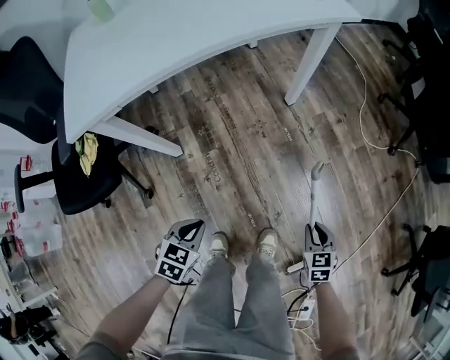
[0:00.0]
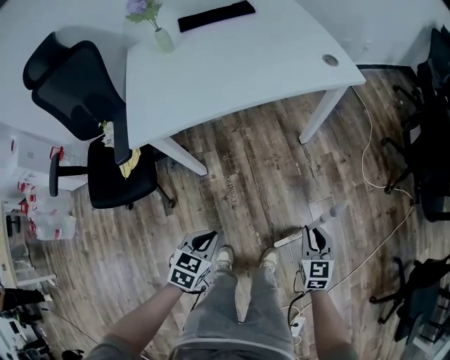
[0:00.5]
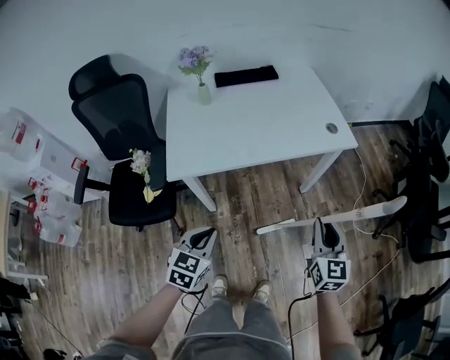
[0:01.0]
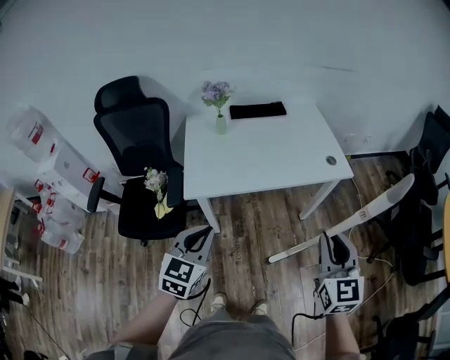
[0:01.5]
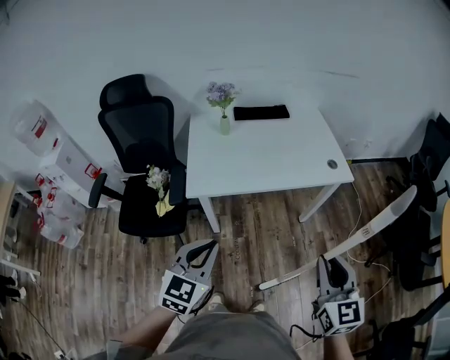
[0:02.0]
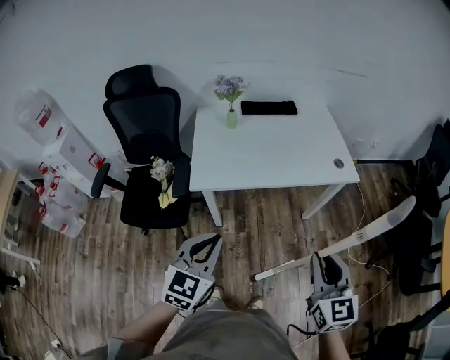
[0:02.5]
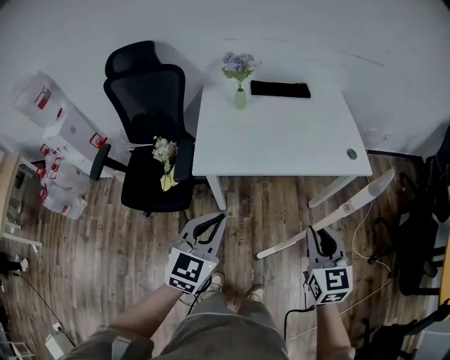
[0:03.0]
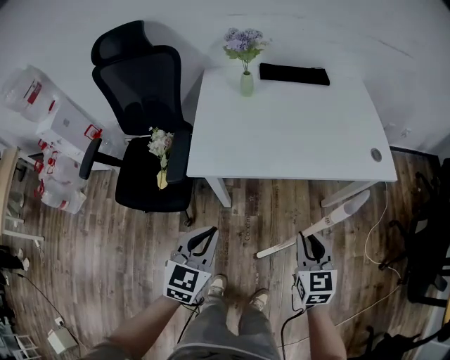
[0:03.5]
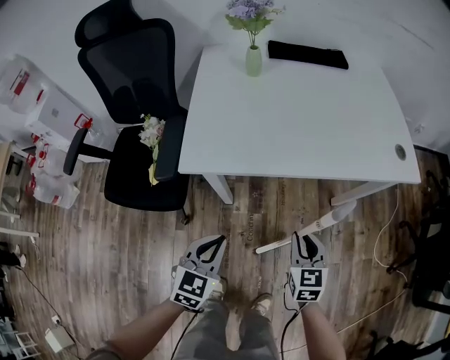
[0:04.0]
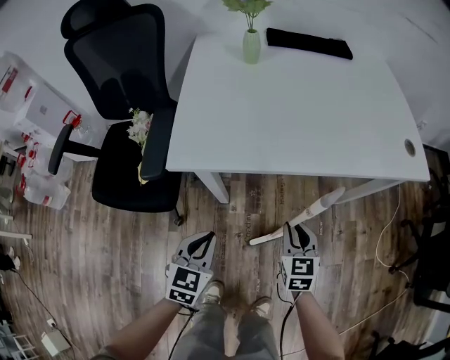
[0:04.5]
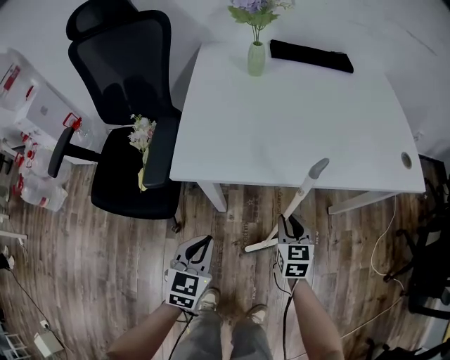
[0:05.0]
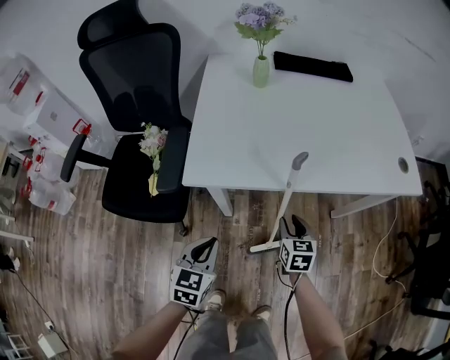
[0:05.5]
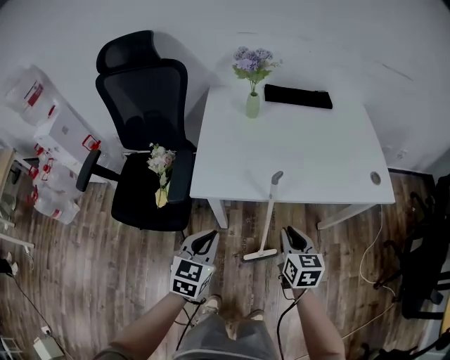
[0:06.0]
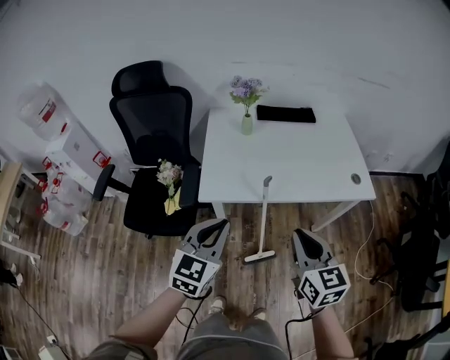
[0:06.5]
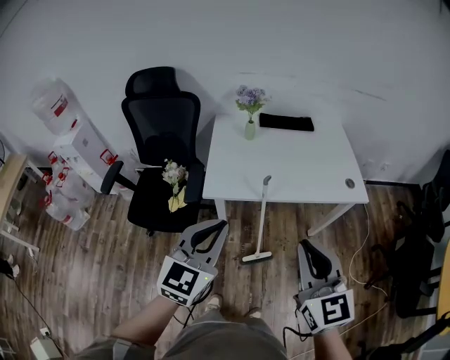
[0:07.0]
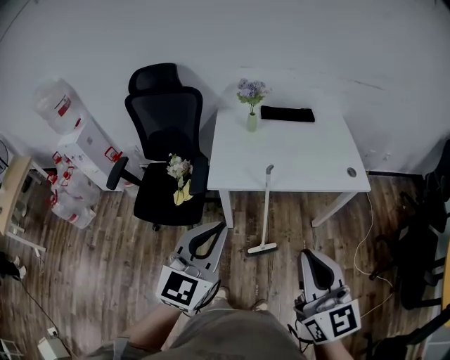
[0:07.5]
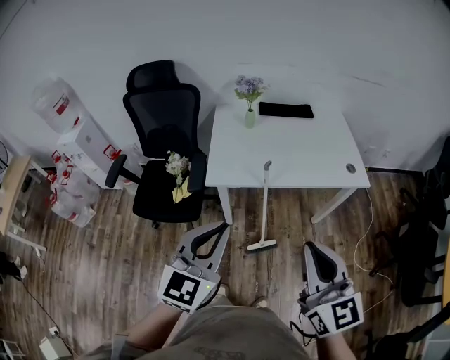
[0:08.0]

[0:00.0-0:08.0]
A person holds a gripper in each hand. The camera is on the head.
0:00.0 to 0:02.0: Both grippers move upward, approximately 60 cm. The left gripper points its fingers approximately 30 degrees further upward. Meanwhile the right gripper tips its fingers upward by roughly 40 degrees.
0:02.0 to 0:04.0: The left gripper travels downward by about 30 cm; the right gripper goes approximately 40 cm downward and forward.
0:04.0 to 0:06.0: The two grippers go approximately 10 cm upward.
0:06.0 to 0:08.0: The two grippers go approximately 40 cm upward and backward. The right gripper swivels roughly 30 degrees. Meanwhile the left gripper turns by some 20 degrees.

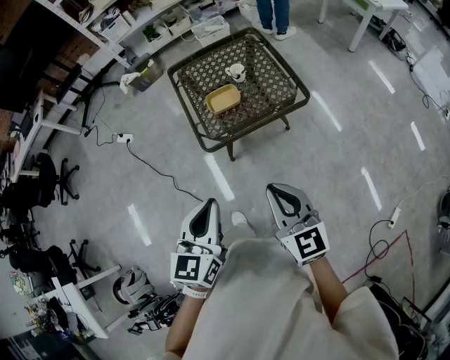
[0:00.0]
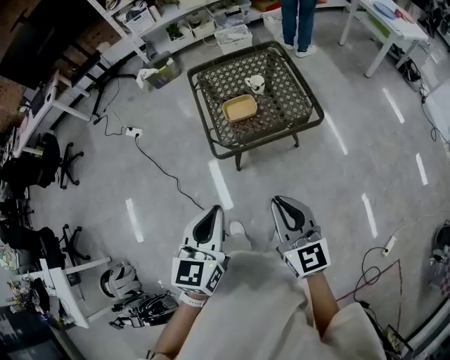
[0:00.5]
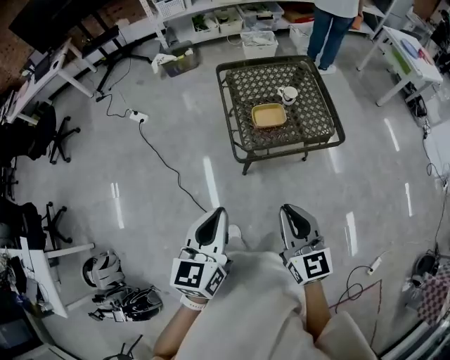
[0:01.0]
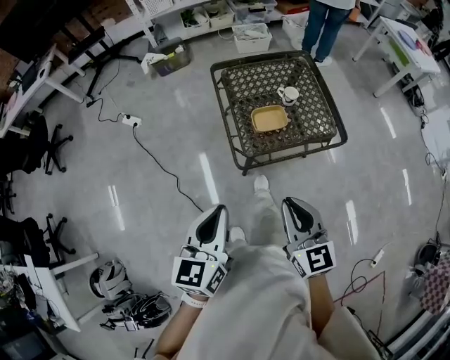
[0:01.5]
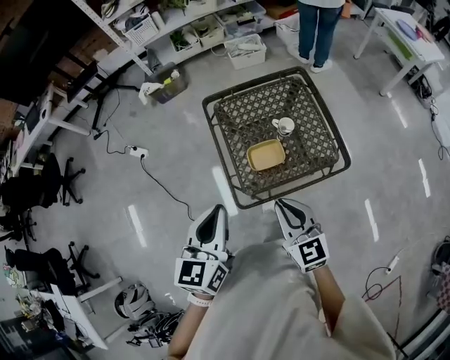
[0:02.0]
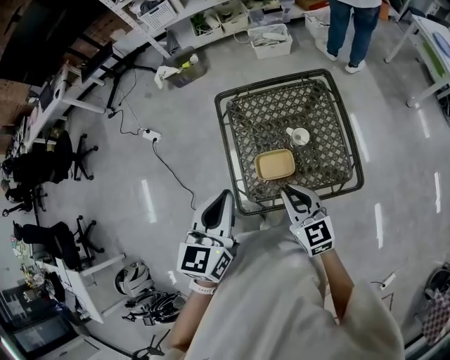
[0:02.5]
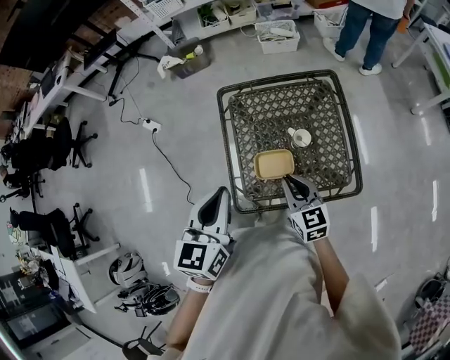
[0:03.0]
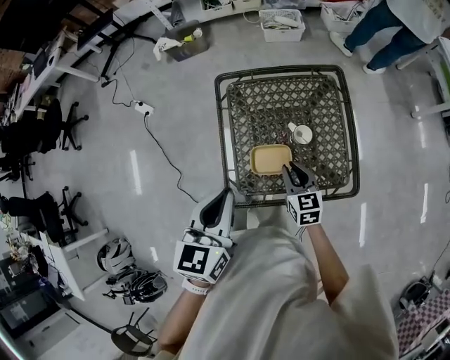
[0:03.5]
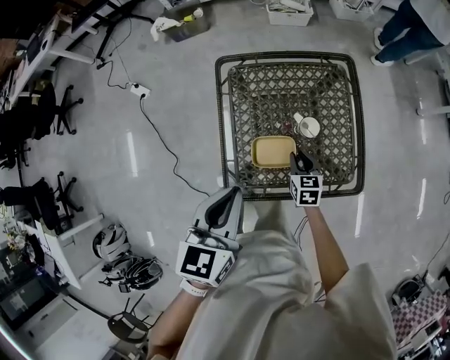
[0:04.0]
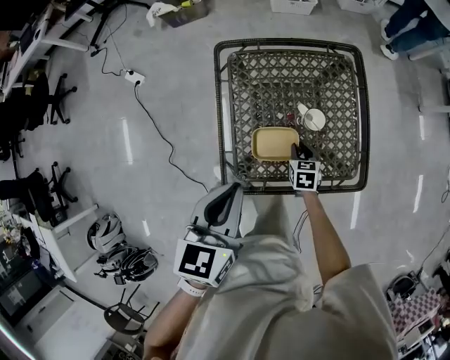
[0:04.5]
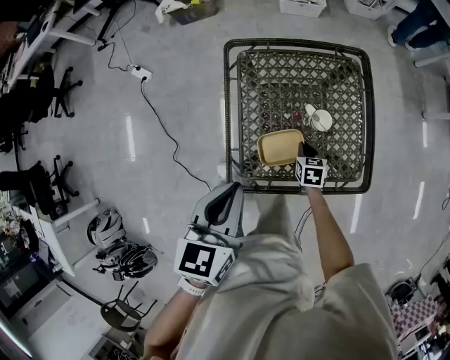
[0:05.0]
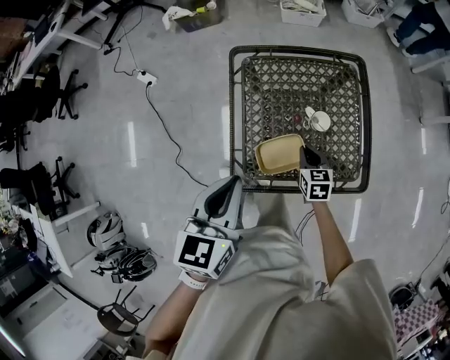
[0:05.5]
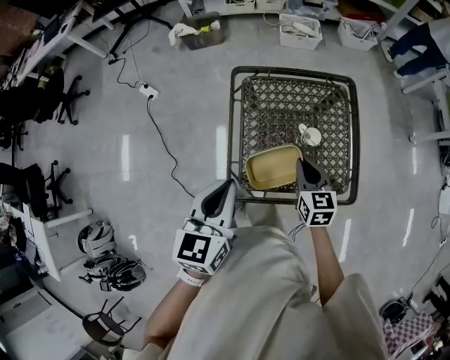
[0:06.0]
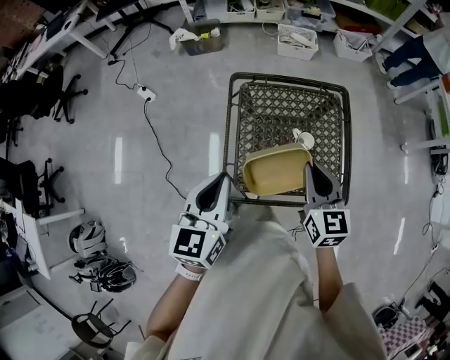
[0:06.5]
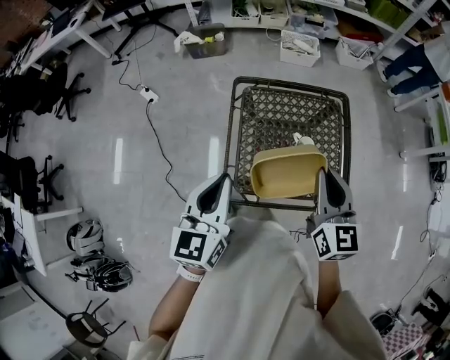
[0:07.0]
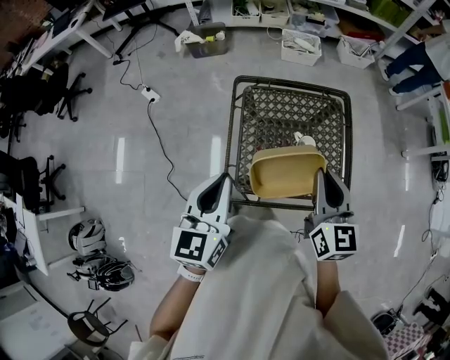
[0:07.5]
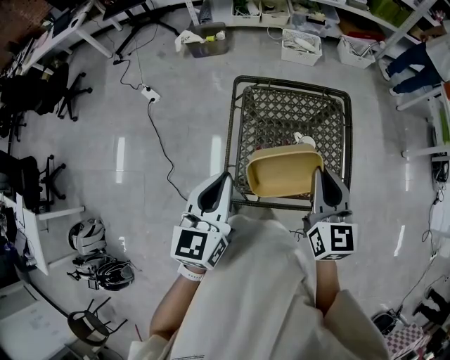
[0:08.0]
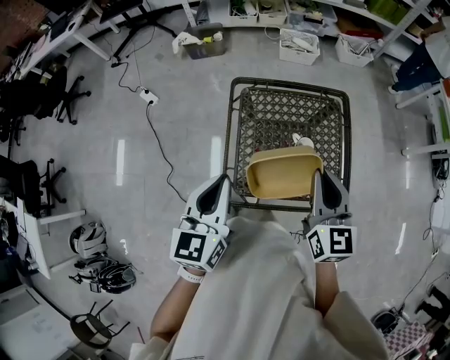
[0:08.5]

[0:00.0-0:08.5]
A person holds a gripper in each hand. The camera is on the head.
0:00.0 to 0:02.0: Both grippers travel together forward, some 25 cm.
0:02.0 to 0:04.0: The left gripper travels forward, to the right and downward by some 15 cm; the right gripper is displaced downward and forward by about 35 cm, and rotates roughly 30 degrees.
0:04.0 to 0:06.5: The right gripper is displaced upward by roughly 30 cm, and changes its angle by roughly 20 degrees. Meanwhile the left gripper travels to the left by some 5 cm.
0:06.5 to 0:08.5: The right gripper moves upward, some 5 cm.

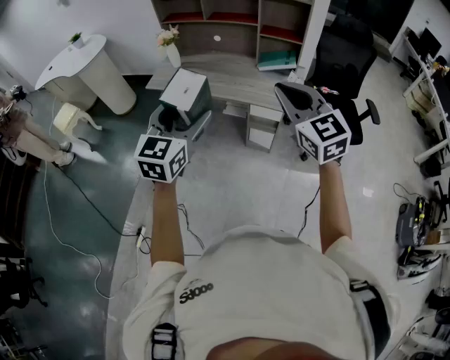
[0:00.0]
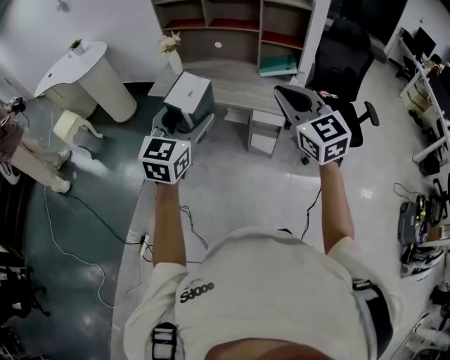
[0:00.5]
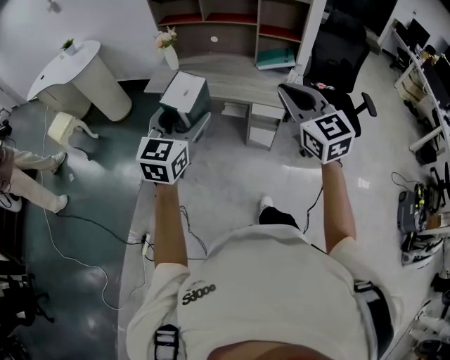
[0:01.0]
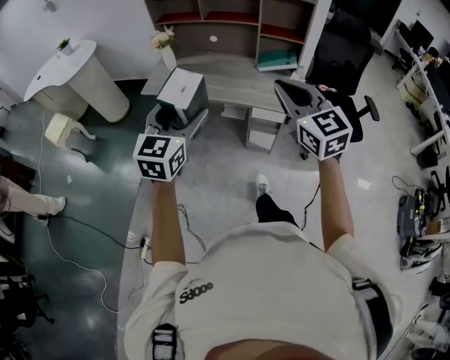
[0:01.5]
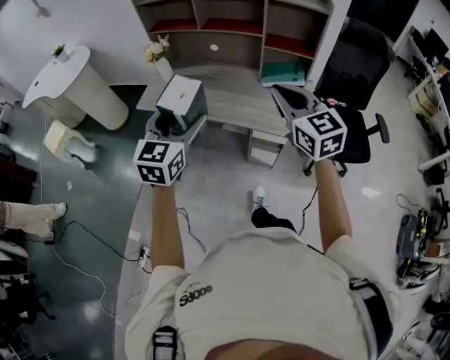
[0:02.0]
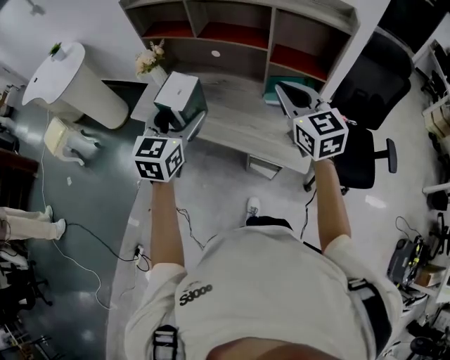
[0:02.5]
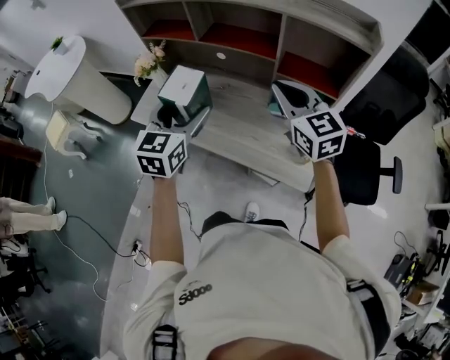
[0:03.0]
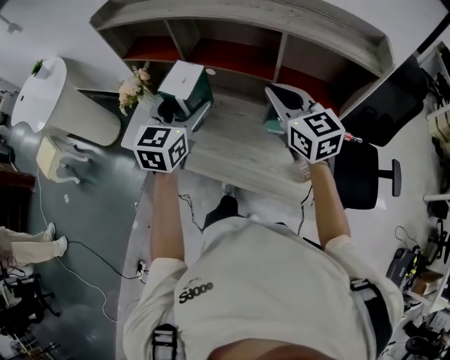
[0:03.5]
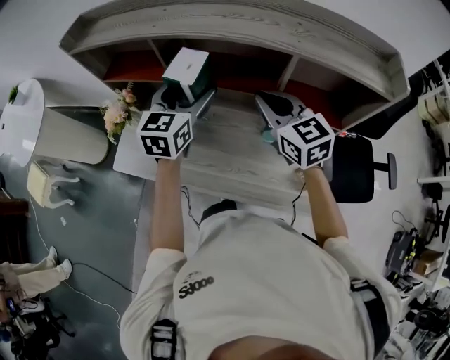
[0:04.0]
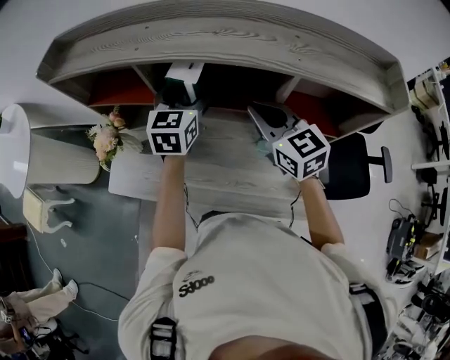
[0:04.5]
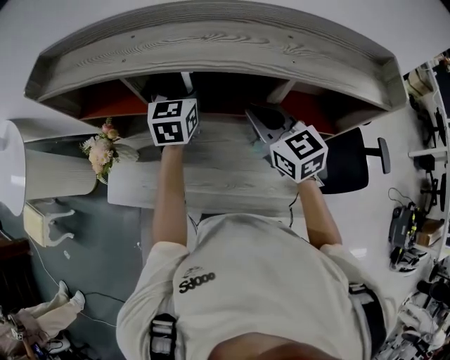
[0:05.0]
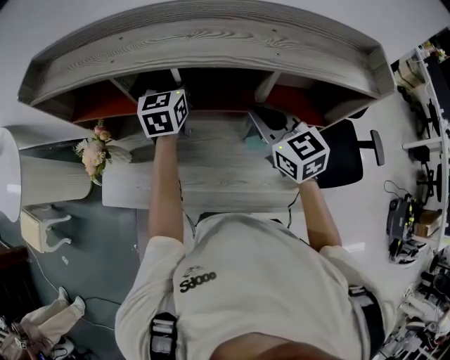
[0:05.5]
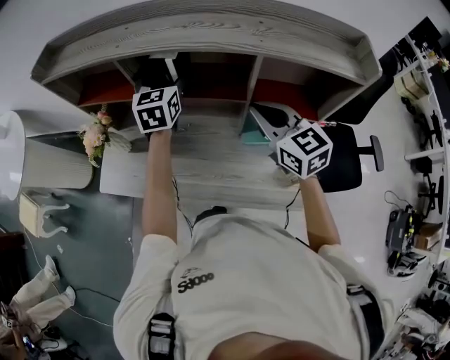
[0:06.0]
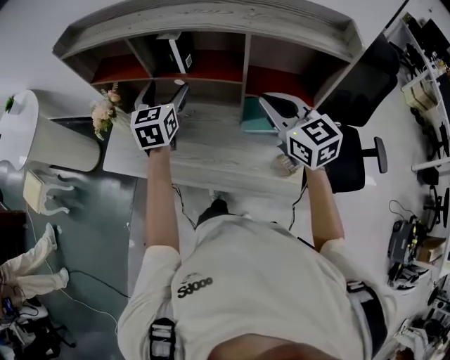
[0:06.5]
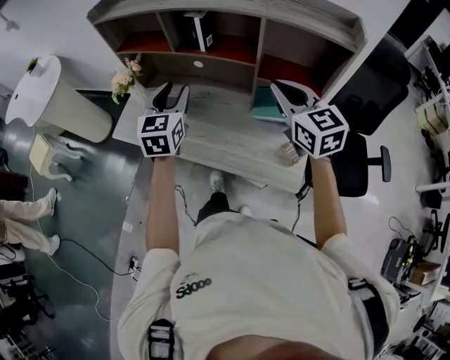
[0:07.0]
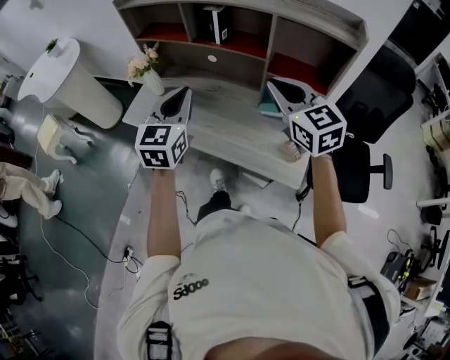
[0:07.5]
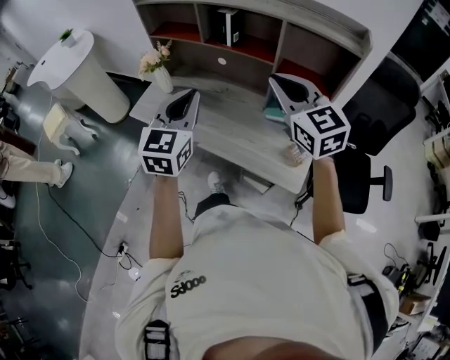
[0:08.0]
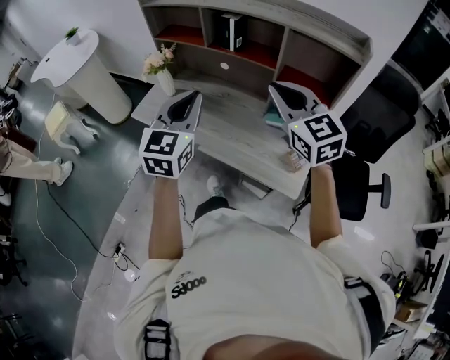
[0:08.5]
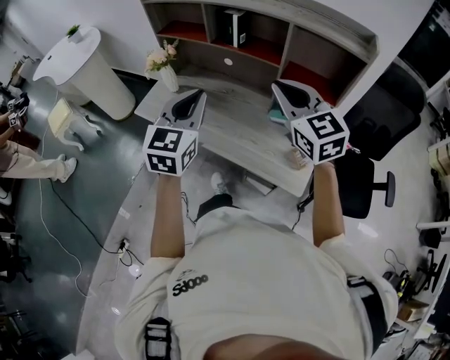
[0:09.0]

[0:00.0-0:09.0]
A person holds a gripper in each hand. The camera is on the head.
0:00.0 to 0:02.0: Both grippers move forward, some 25 cm.
0:02.0 to 0:04.5: The two grippers travel together, forward, roughly 60 cm.
0:04.5 to 0:07.0: The grippers both shift backward by about 25 cm. The left gripper closes its fingers.
0:07.0 to 0:09.0: The left gripper heads backward, covering about 15 cm, and closes up; the right gripper is displaced backward and to the left by about 10 cm.

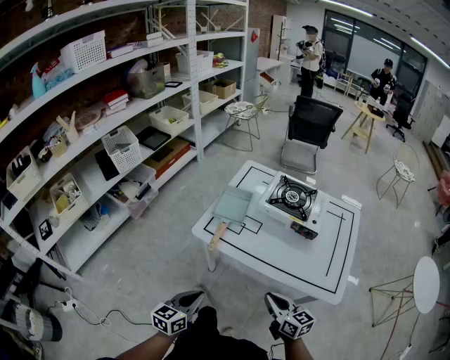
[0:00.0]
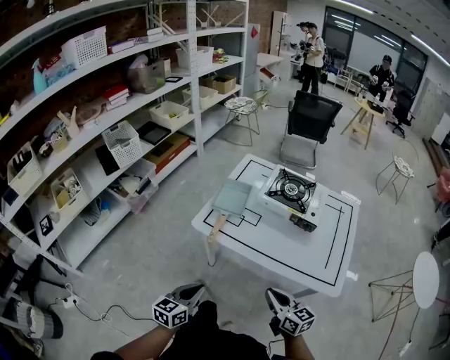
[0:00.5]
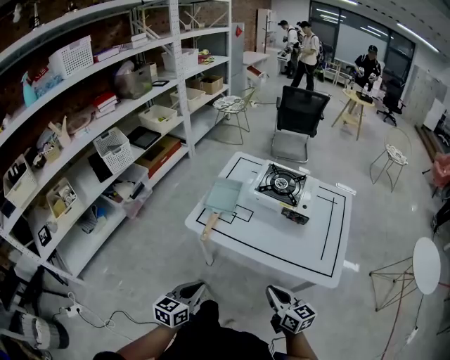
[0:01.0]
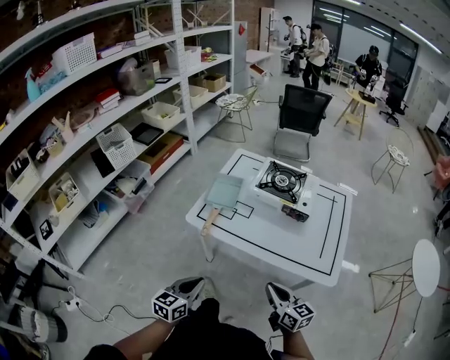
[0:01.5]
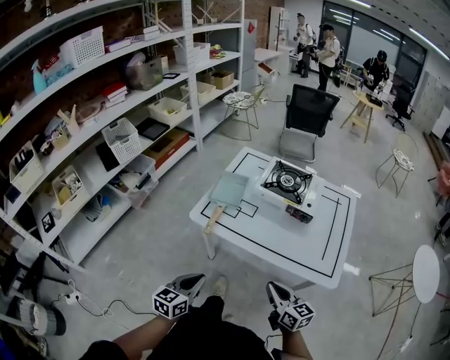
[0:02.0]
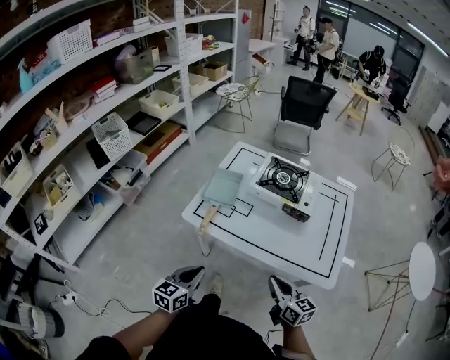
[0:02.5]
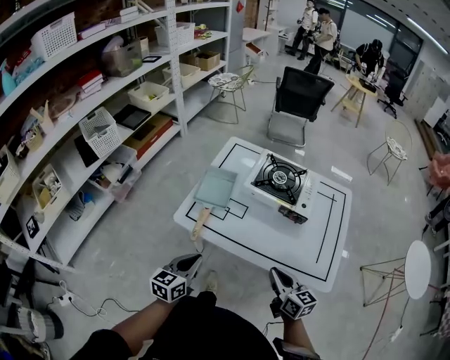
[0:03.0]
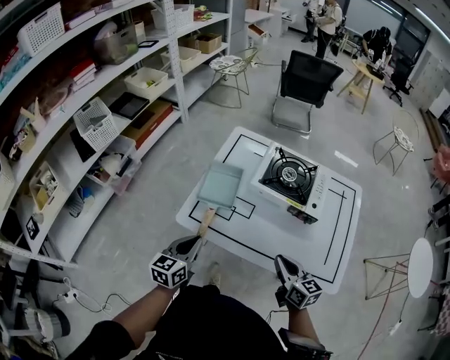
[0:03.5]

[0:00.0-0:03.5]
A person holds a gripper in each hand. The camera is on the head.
0:00.0 to 0:02.0: The grippers move only a little.
0:02.0 to 0:03.5: Both grippers move forward, approximately 20 cm.
